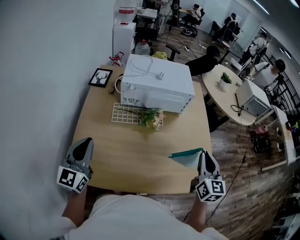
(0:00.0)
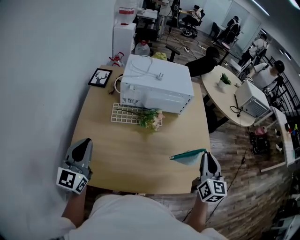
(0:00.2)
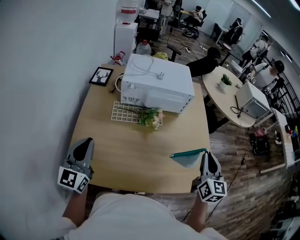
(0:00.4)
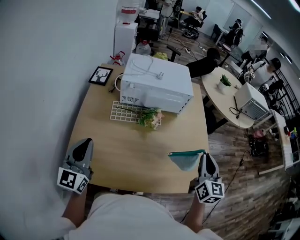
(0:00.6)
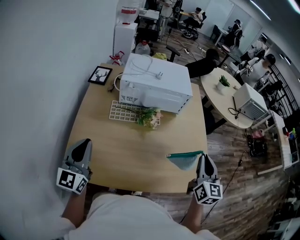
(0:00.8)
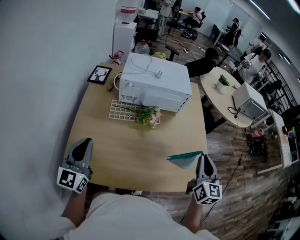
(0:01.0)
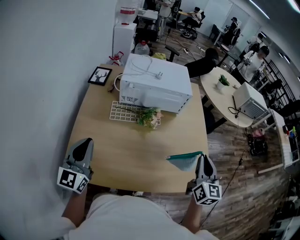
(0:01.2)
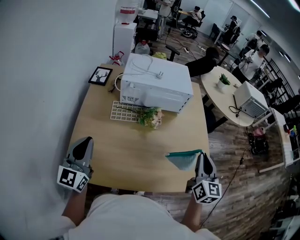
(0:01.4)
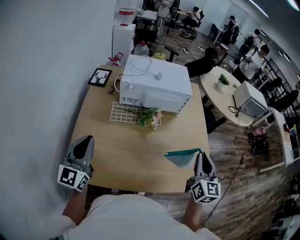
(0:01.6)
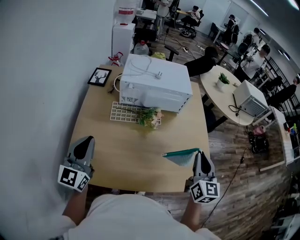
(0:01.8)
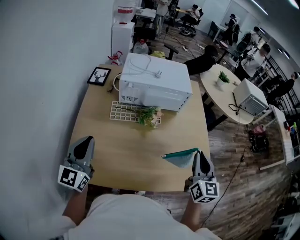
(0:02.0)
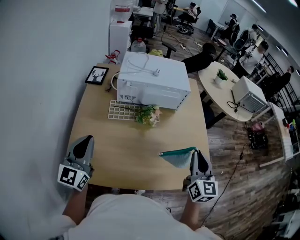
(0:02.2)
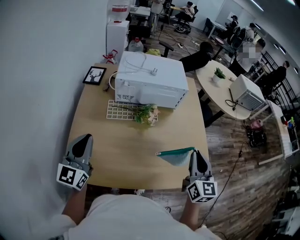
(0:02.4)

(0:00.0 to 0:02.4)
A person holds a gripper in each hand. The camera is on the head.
0:00.0 - 0:02.4: The grippers move only a little.

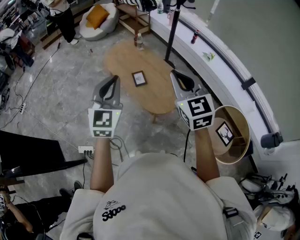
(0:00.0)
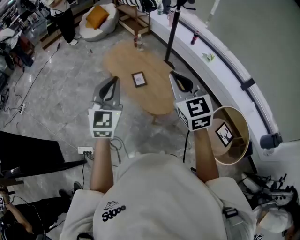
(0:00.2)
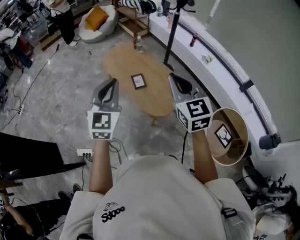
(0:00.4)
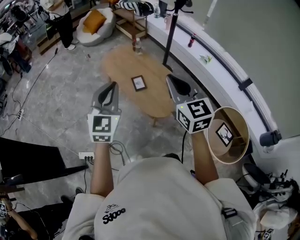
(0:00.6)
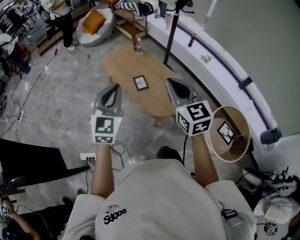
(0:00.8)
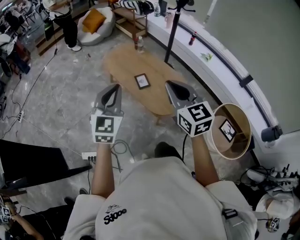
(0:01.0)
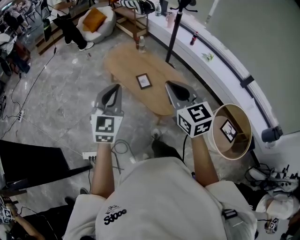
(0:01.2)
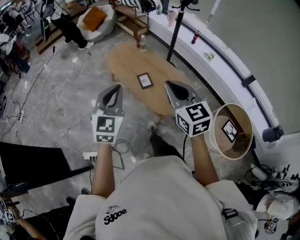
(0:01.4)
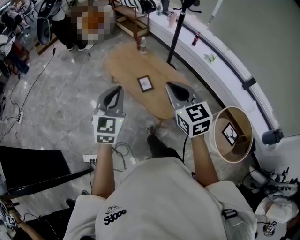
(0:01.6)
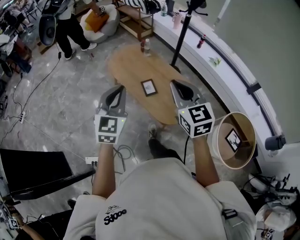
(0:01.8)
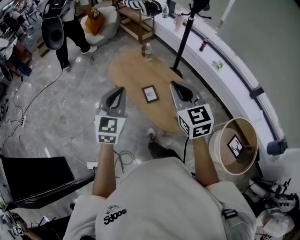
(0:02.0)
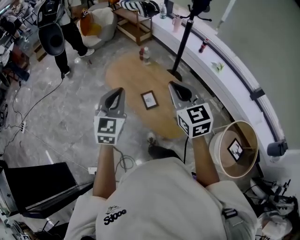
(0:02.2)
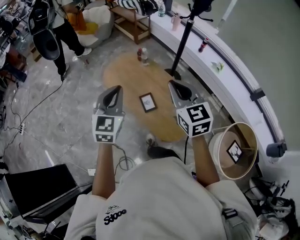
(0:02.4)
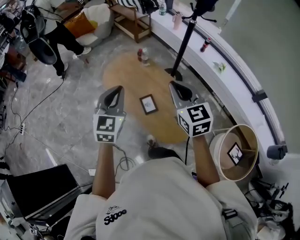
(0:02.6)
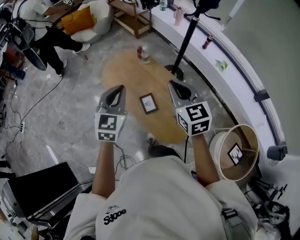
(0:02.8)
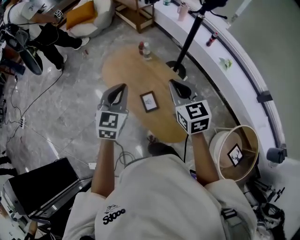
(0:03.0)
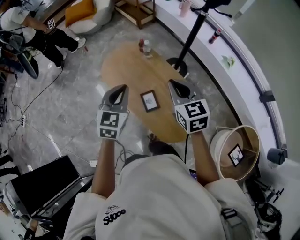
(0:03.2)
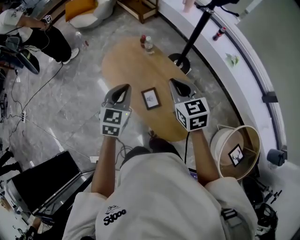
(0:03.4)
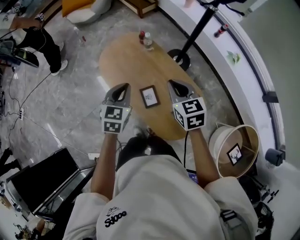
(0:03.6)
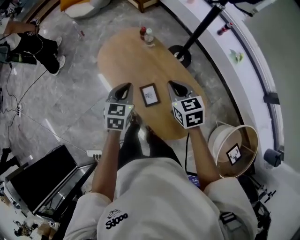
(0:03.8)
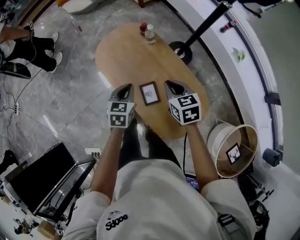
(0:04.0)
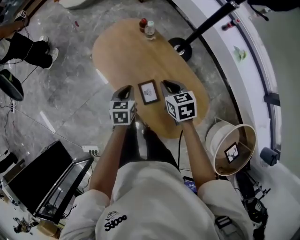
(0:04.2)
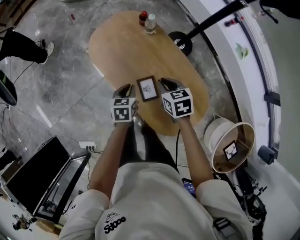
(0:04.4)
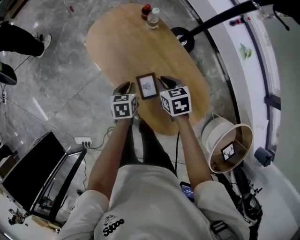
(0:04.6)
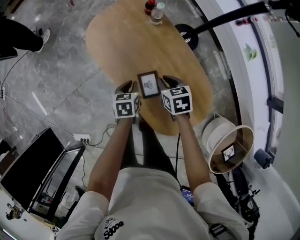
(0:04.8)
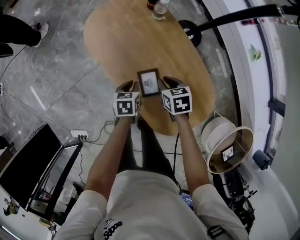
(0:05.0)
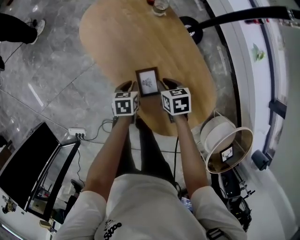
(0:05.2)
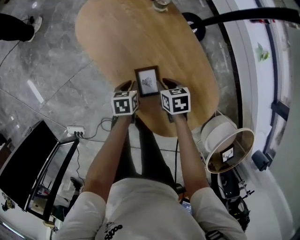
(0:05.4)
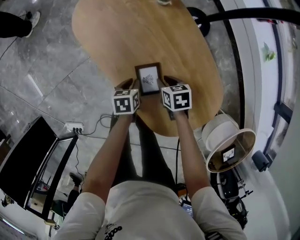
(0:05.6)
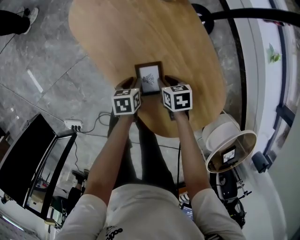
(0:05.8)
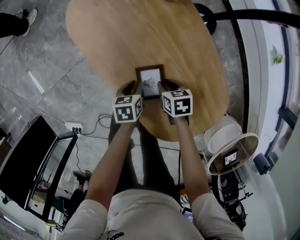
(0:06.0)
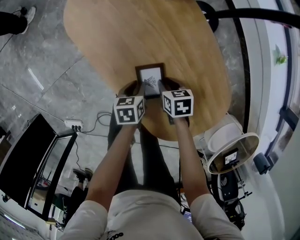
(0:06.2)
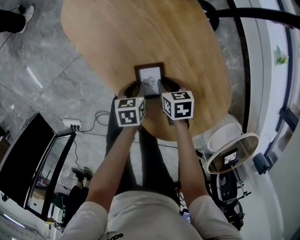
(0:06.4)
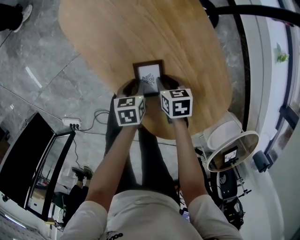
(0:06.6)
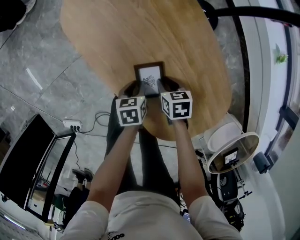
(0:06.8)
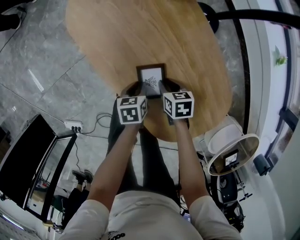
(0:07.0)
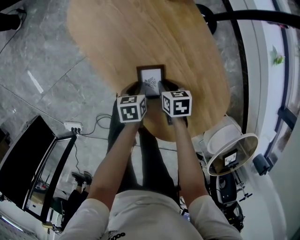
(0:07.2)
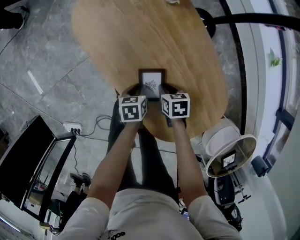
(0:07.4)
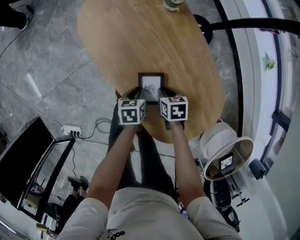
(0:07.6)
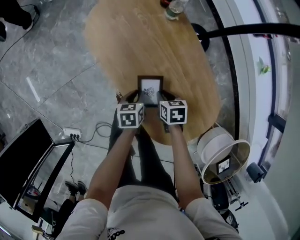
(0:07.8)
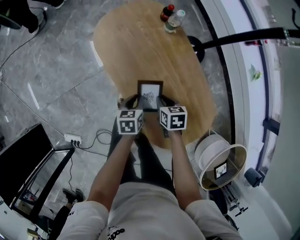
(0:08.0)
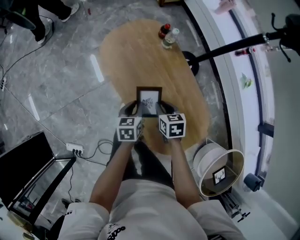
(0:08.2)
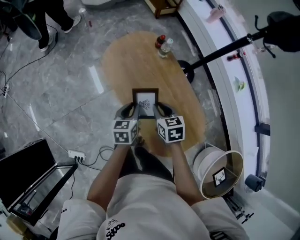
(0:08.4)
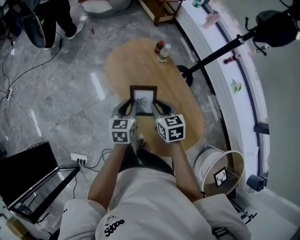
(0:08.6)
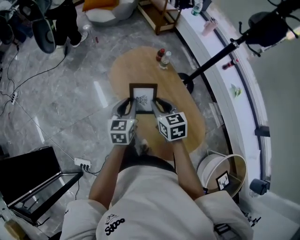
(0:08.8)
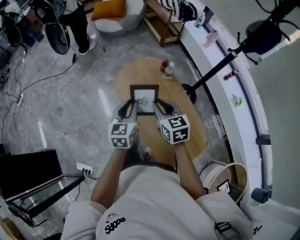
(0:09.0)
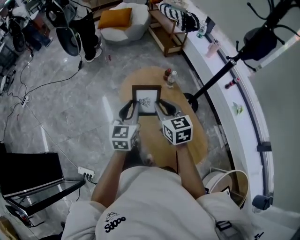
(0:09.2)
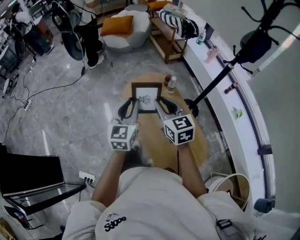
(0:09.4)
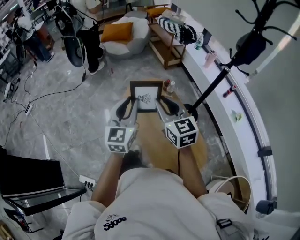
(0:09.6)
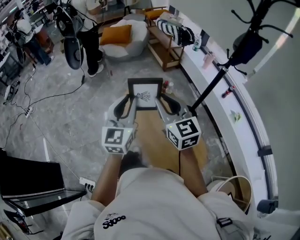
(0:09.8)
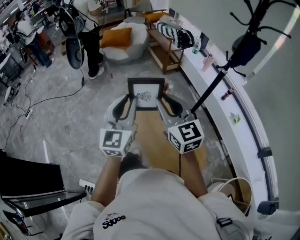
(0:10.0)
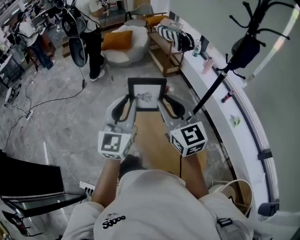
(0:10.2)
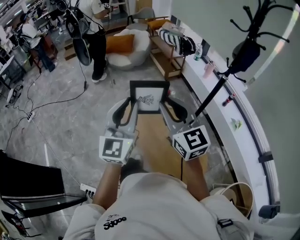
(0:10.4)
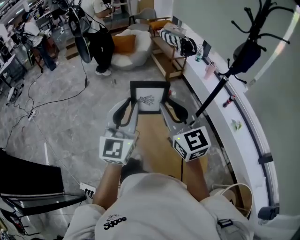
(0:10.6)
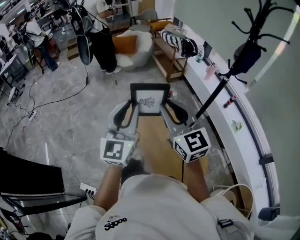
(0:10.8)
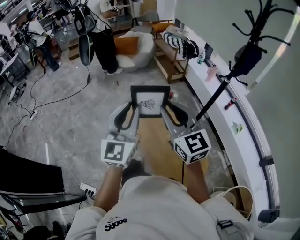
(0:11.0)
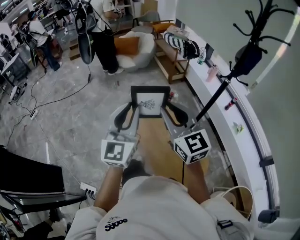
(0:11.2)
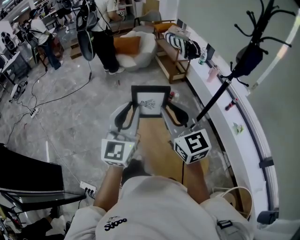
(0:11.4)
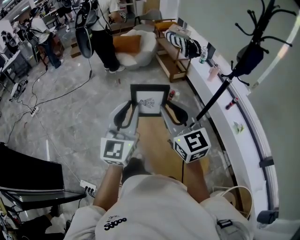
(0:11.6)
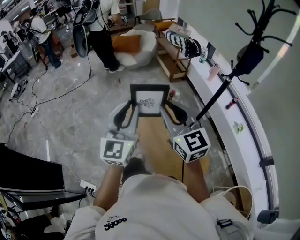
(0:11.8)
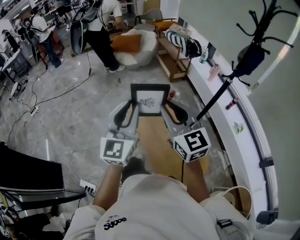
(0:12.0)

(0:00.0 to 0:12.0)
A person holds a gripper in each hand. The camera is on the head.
0:00.0 - 0:01.6: The two grippers go some 10 cm to the left.
0:01.6 - 0:03.0: The grippers both shift forward by approximately 35 cm.
0:03.0 - 0:04.4: Both grippers move downward, roughly 30 cm. The right gripper rotates roughly 30 degrees, while the left gripper angles its fingers downward, by some 30 degrees.
0:04.4 - 0:06.0: Both grippers travel together downward, about 25 cm. The left gripper turns by roughly 20 degrees, while the right gripper turns by some 20 degrees.
0:06.0 - 0:07.6: There are only small adjustments of the grippers.
0:07.6 - 0:09.0: Both grippers travel together upward, approximately 50 cm. The right gripper points its fingers roughly 40 degrees further upward, while the left gripper angles its fingers upward, by roughly 40 degrees.
0:09.0 - 0:10.4: The two grippers go approximately 25 cm upward. The right gripper changes its angle by approximately 30 degrees; the left gripper tips its fingers upward by some 30 degrees.
0:10.4 - 0:12.0: The grippers move only a little.

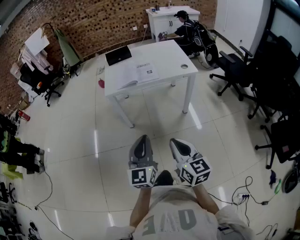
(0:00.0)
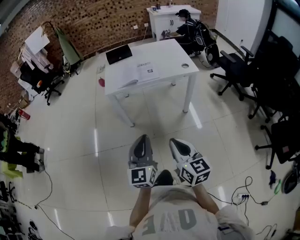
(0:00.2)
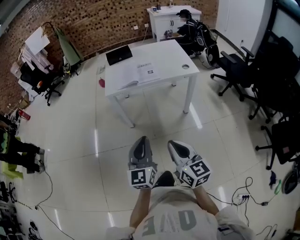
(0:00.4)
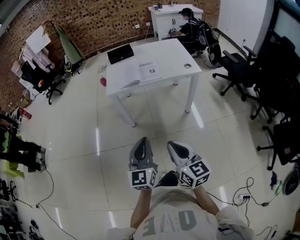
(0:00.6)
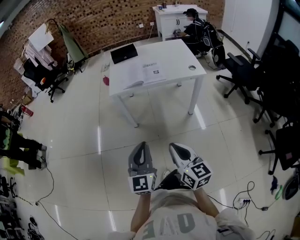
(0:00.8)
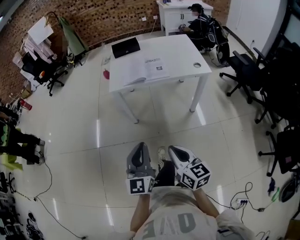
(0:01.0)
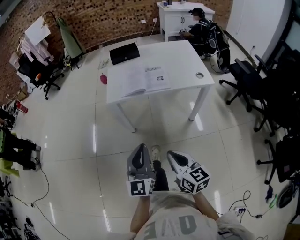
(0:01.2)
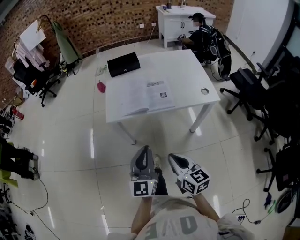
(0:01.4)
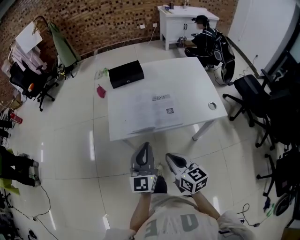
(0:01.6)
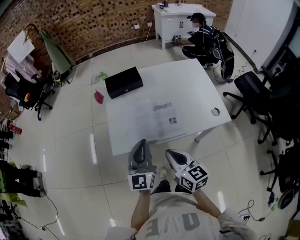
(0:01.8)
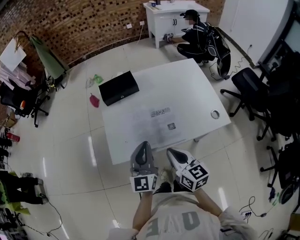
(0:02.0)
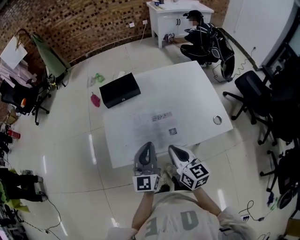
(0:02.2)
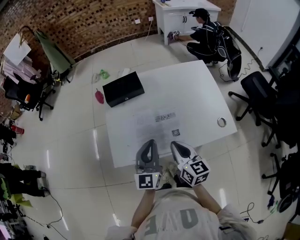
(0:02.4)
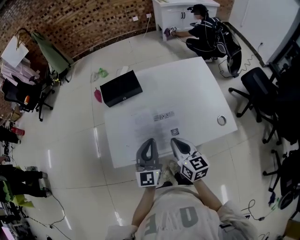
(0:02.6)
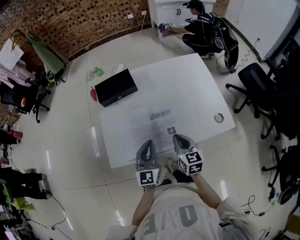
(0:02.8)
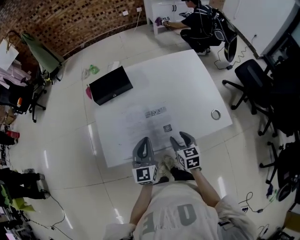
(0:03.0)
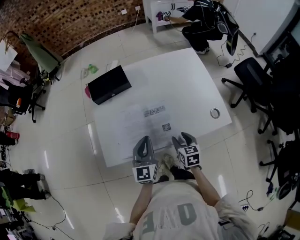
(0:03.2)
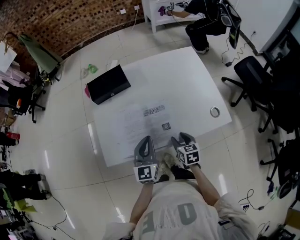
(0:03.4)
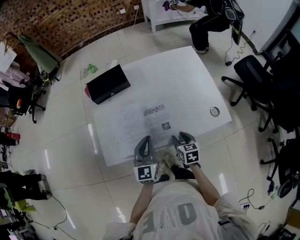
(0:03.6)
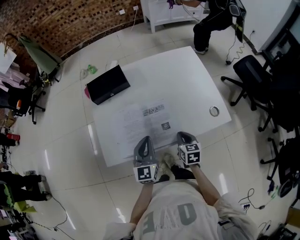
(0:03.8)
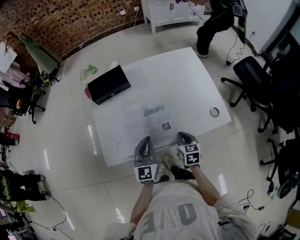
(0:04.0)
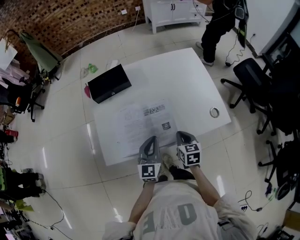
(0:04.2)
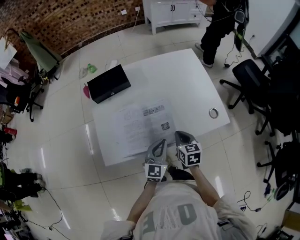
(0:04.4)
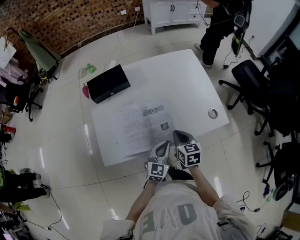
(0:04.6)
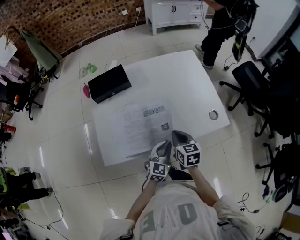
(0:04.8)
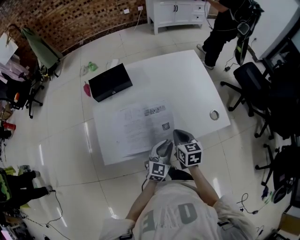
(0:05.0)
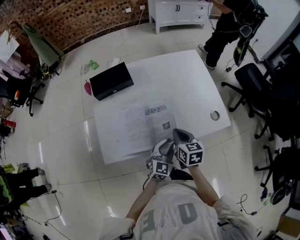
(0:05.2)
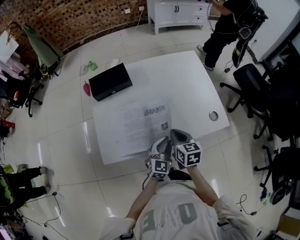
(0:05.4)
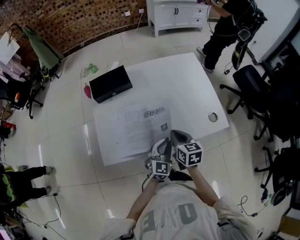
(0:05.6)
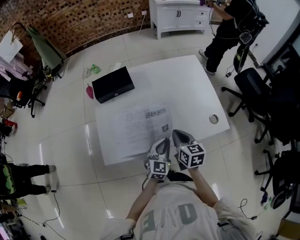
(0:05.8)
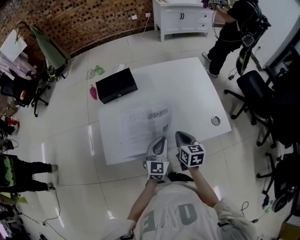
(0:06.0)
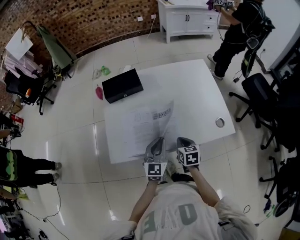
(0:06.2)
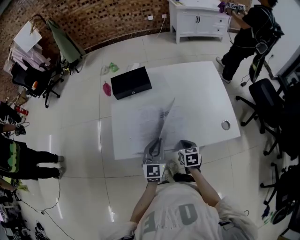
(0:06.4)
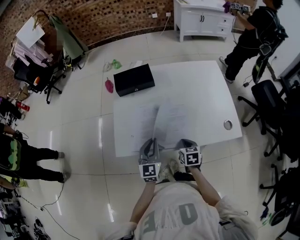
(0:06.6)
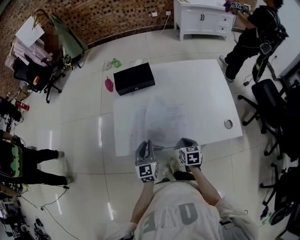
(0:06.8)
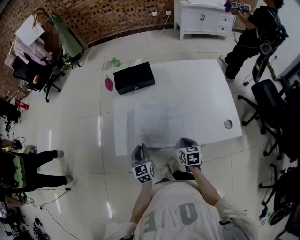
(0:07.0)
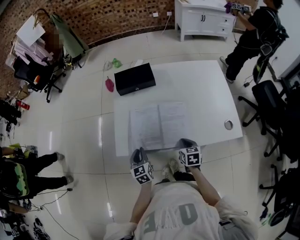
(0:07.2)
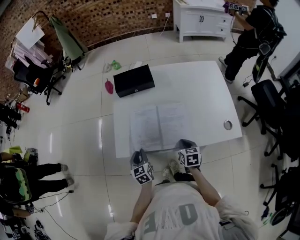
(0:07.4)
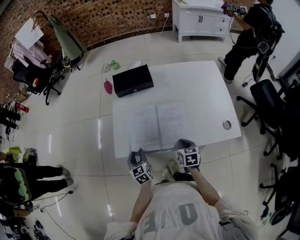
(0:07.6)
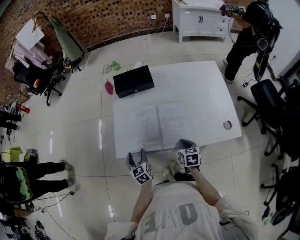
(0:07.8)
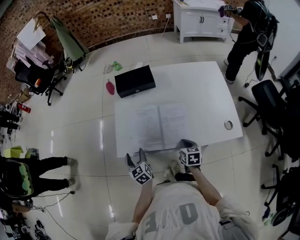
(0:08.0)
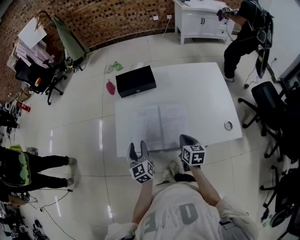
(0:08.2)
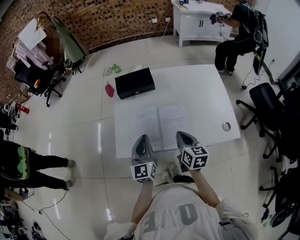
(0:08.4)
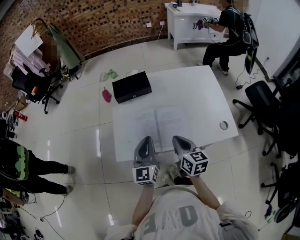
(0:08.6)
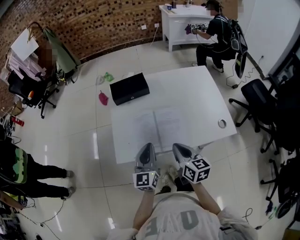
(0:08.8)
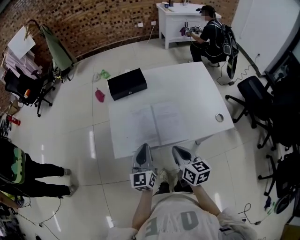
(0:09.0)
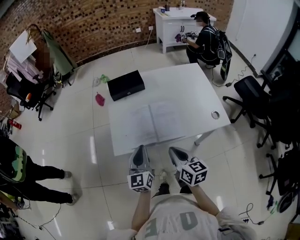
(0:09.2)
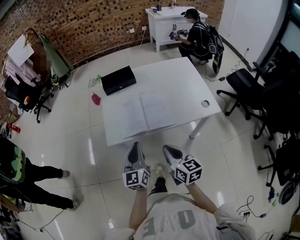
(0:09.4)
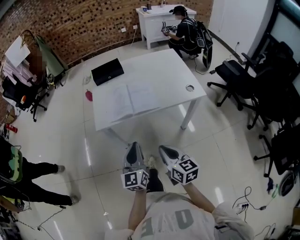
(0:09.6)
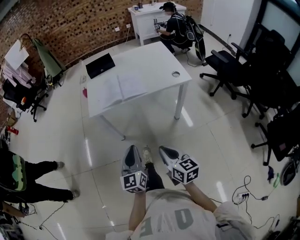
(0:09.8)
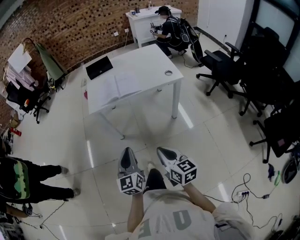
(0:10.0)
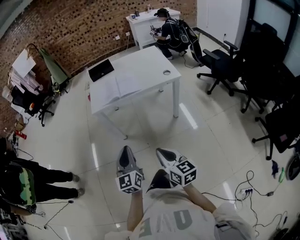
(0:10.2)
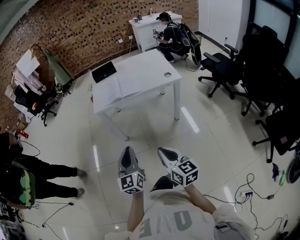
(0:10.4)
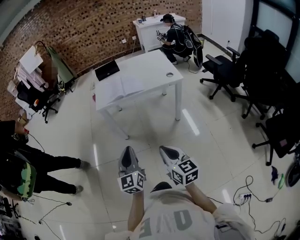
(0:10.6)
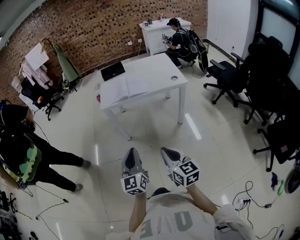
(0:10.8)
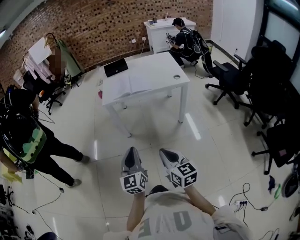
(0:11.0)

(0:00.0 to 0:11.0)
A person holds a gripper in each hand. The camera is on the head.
0:00.0 - 0:01.6: The grippers both shift forward by approximately 40 cm.
0:01.6 - 0:03.2: The right gripper travels forward, downward and to the right by roughly 30 cm, turns by roughly 30 degrees, and opens up; the left gripper heads forward and downward, covering approximately 20 cm.
0:03.2 - 0:04.8: The right gripper moves upward, about 5 cm, and closes its fingers. Meanwhile the left gripper travels to the right and downward by approximately 15 cm, and turns by some 30 degrees.
0:04.8 - 0:06.2: The right gripper heads downward, covering about 5 cm, while the left gripper is displaced to the left and upward by approximately 10 cm.
0:06.2 - 0:07.8: The left gripper moves to the left and downward, roughly 25 cm, changes its angle by roughly 50 degrees, and opens its fingers.
0:07.8 - 0:09.4: The right gripper goes approximately 25 cm upward, backward and to the left, and changes its angle by approximately 30 degrees. Meanwhile the left gripper goes approximately 20 cm upward and backward, swivels about 40 degrees, and closes its fingers.
0:09.4 - 0:11.0: The two grippers travel together, backward, approximately 40 cm.
